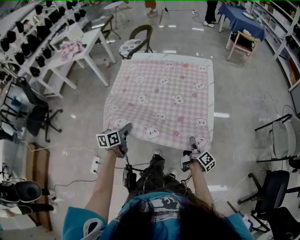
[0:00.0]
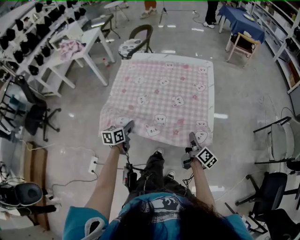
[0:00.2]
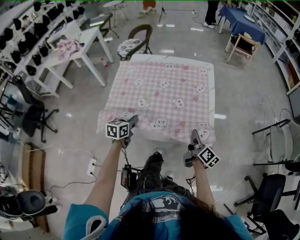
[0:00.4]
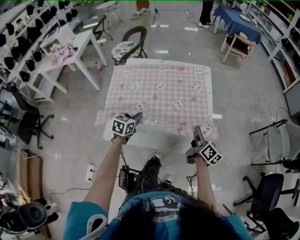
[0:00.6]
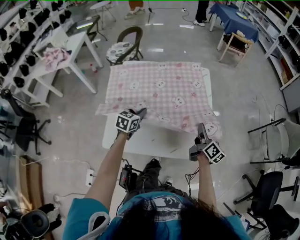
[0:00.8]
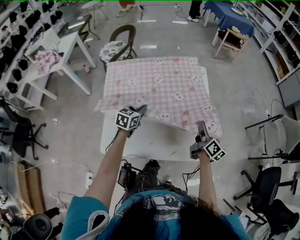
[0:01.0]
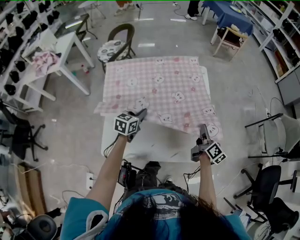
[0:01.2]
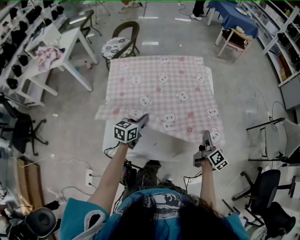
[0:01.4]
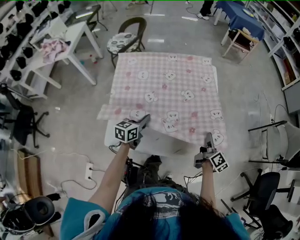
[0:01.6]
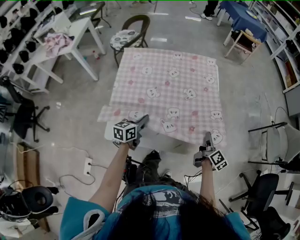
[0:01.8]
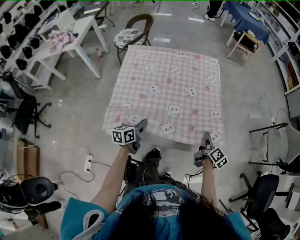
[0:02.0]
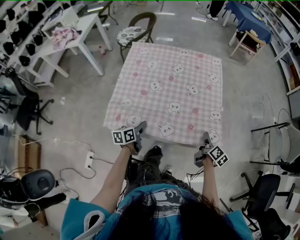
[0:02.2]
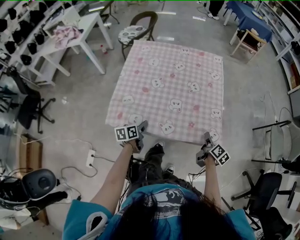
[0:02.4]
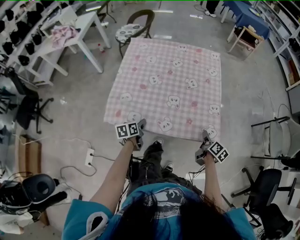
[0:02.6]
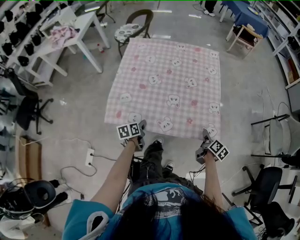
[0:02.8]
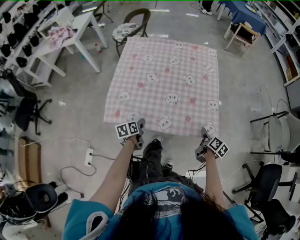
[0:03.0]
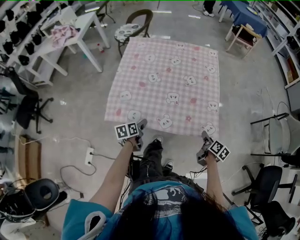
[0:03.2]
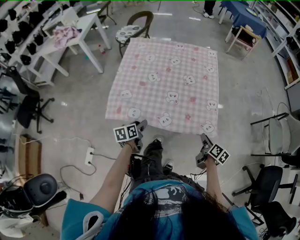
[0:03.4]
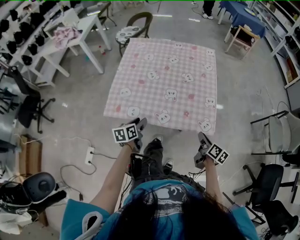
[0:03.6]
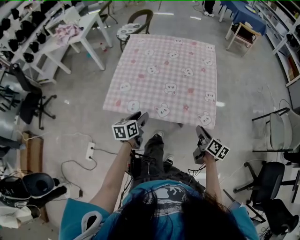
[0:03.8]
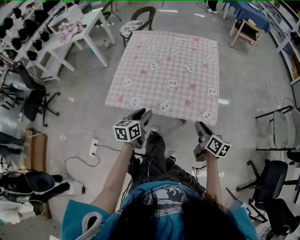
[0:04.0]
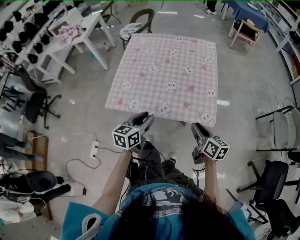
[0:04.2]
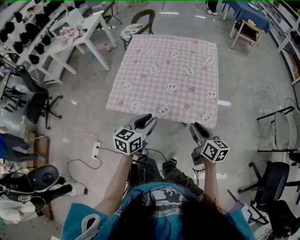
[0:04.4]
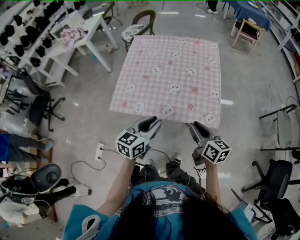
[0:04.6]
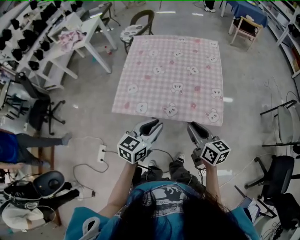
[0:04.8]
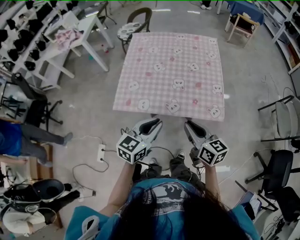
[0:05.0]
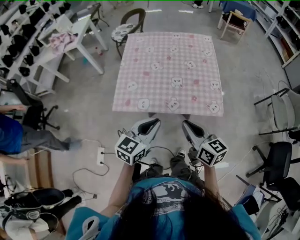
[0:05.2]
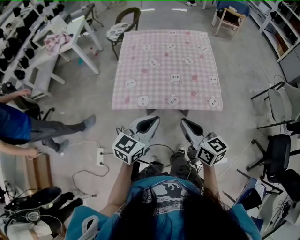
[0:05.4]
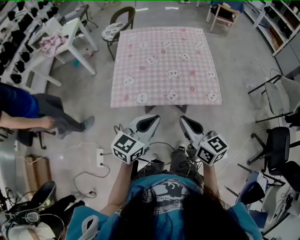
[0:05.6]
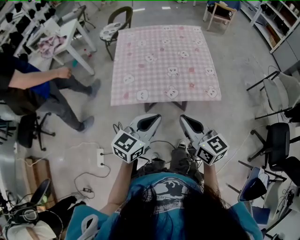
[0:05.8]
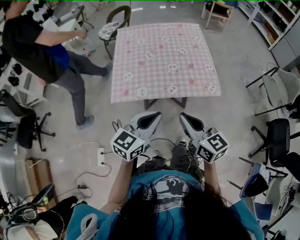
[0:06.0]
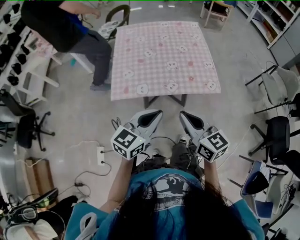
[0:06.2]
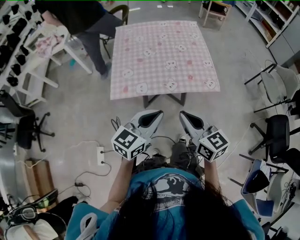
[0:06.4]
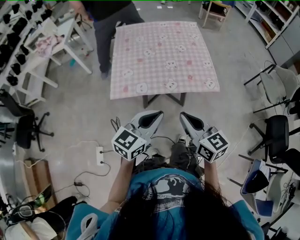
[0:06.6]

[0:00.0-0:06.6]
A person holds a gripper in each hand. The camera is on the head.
0.0 to 1.6 s: The right gripper heads forward and upward, covering some 15 cm, and changes its angle by about 20 degrees, while the left gripper heads forward, covering about 20 cm, and changes its angle by some 20 degrees.
1.6 to 3.2 s: The two grippers go some 15 cm backward and downward. The left gripper changes its angle by some 30 degrees, and opens up. Meanwhile the right gripper rotates approximately 30 degrees, and opens its fingers.
3.2 to 5.0 s: The left gripper goes some 25 cm upward and backward, rotates around the line of its fingers by approximately 40 degrees, clockwise from behind, and closes; the right gripper travels upward, to the left and backward by some 30 cm, and changes its angle by approximately 40 degrees.
5.0 to 6.6 s: The left gripper travels backward by about 10 cm, while the right gripper goes roughly 15 cm backward, to the left and upward.

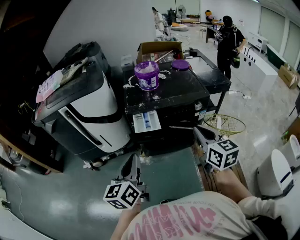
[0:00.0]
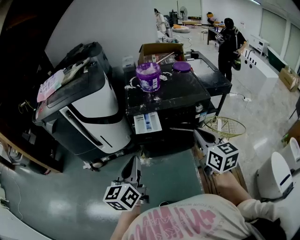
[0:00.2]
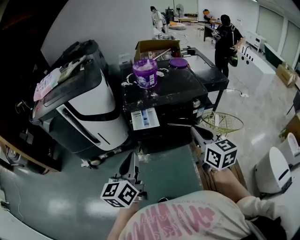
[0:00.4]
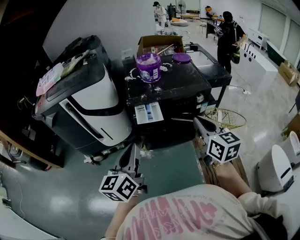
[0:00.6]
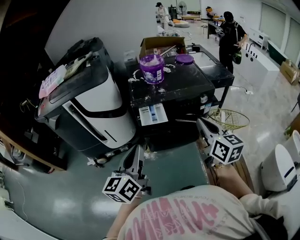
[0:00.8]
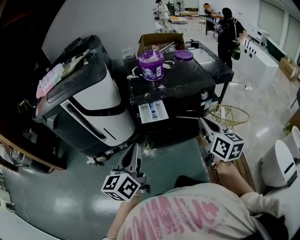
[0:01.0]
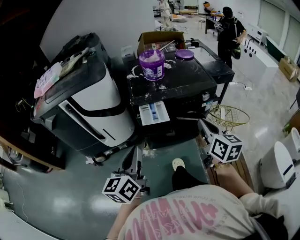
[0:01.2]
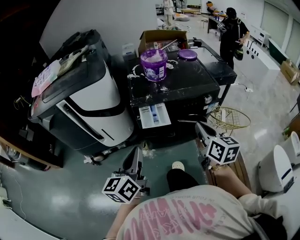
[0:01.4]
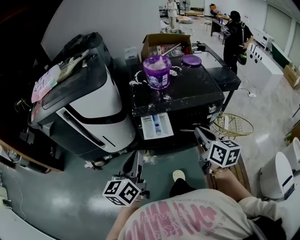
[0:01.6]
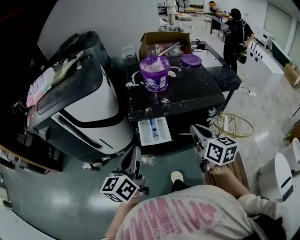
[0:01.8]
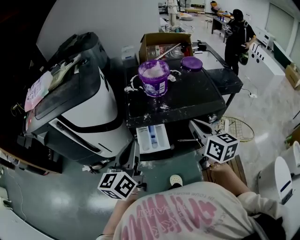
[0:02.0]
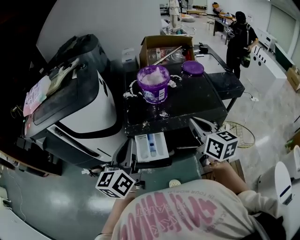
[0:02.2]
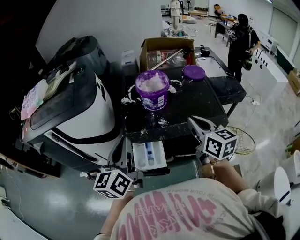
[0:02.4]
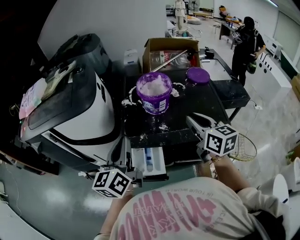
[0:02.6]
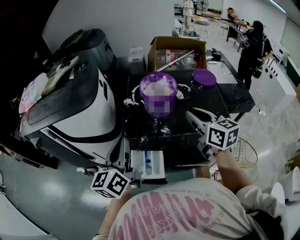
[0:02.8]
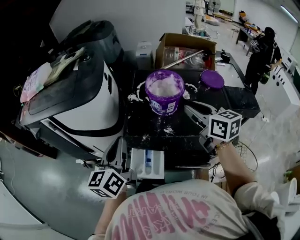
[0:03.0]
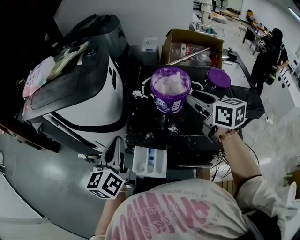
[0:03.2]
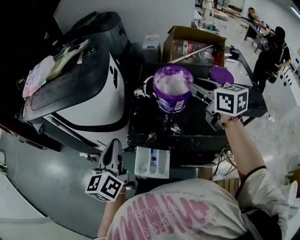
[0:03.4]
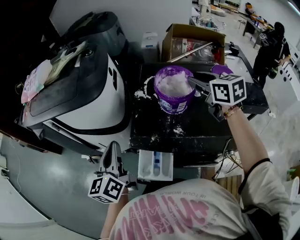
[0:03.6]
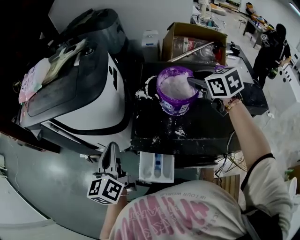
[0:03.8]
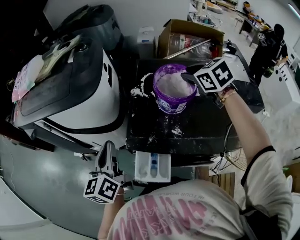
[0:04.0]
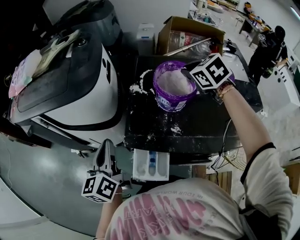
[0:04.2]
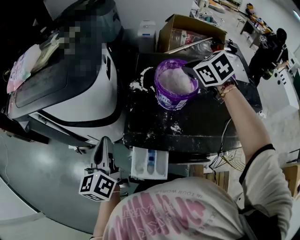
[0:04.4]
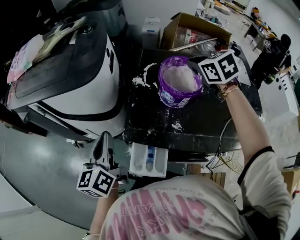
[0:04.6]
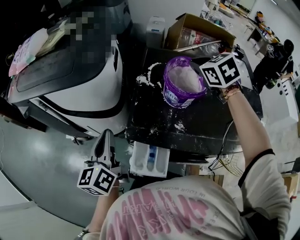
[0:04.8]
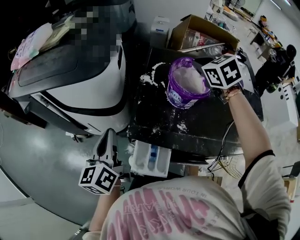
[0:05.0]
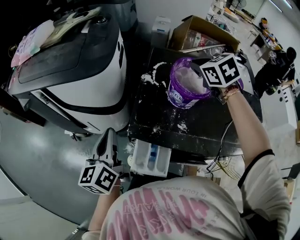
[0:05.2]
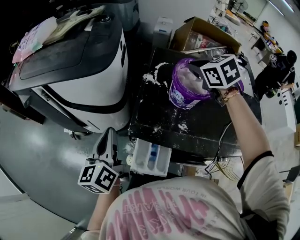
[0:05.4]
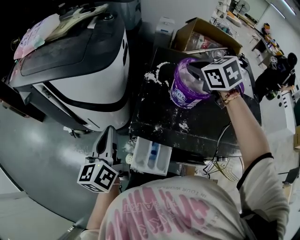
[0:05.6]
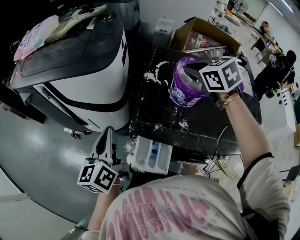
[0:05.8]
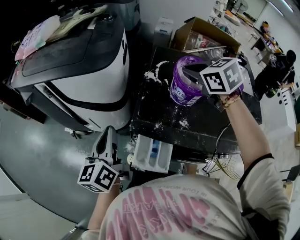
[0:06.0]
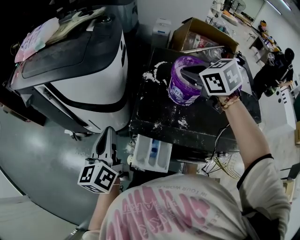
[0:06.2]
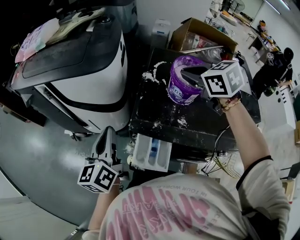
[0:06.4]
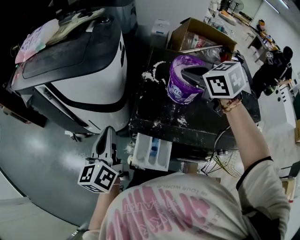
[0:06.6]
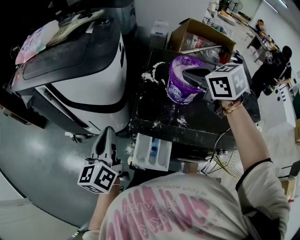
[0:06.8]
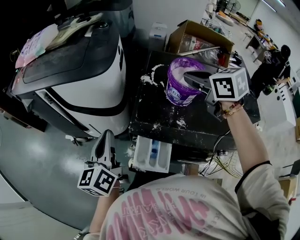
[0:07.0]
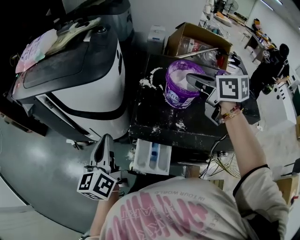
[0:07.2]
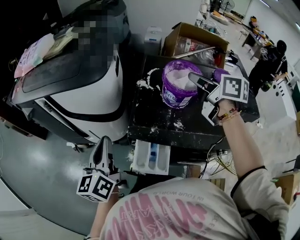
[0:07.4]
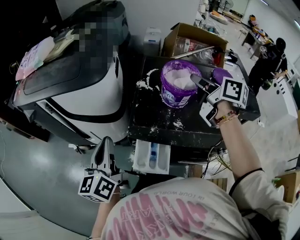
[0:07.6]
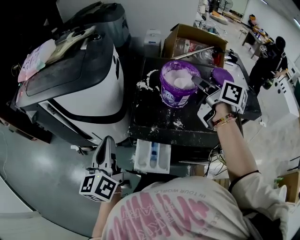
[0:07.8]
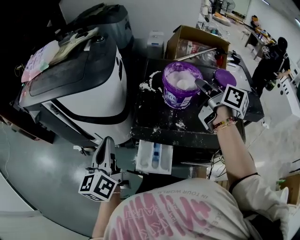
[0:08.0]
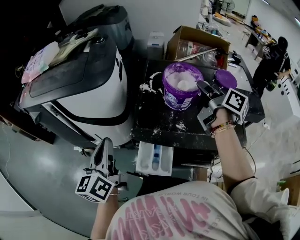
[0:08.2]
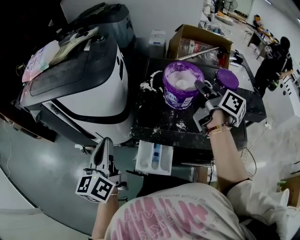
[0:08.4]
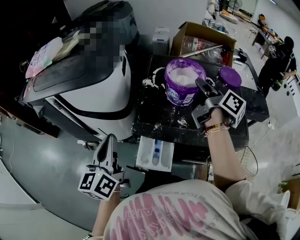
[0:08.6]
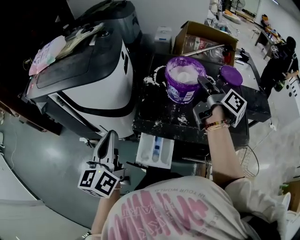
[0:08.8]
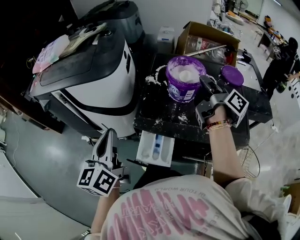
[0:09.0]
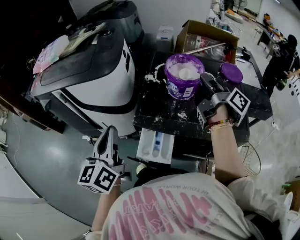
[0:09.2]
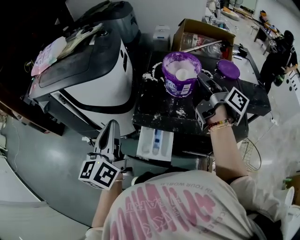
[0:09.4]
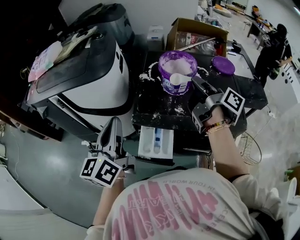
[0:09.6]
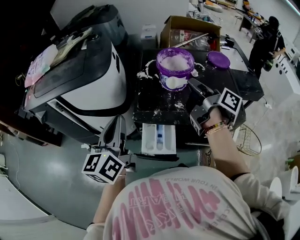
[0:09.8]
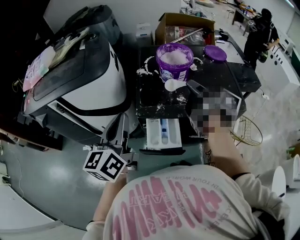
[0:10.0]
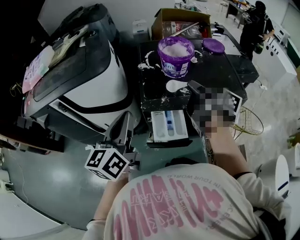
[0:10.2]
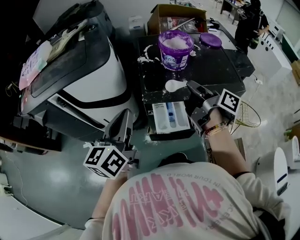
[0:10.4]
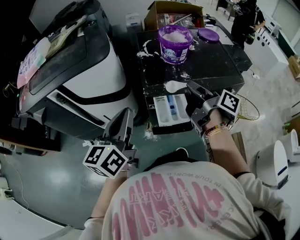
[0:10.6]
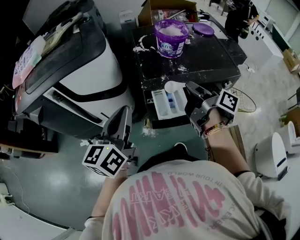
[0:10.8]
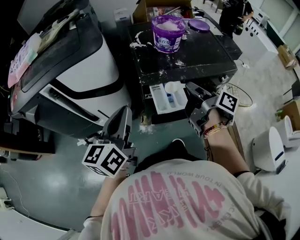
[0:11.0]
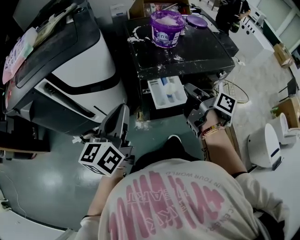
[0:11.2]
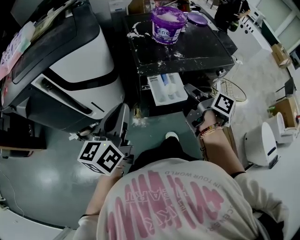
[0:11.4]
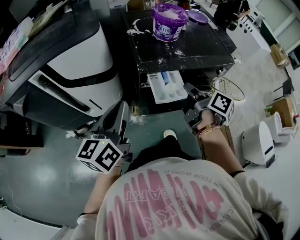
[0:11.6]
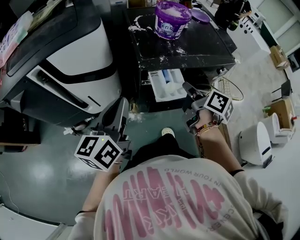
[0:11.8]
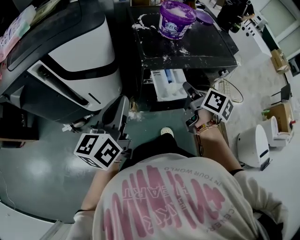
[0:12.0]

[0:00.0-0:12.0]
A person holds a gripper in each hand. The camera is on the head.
0.0 to 1.6 s: The left gripper goes some 10 cm forward, while the right gripper goes approximately 10 cm forward and downward.
1.6 to 3.0 s: The grippers both shift forward by approximately 30 cm. The right gripper swivels about 30 degrees, and opens.
3.0 to 4.4 s: The right gripper goes some 15 cm forward, tips its fingers downward by some 30 degrees, and closes its fingers, while the left gripper travels to the left by about 5 cm.
4.4 to 6.0 s: The right gripper is displaced to the left by some 10 cm.
6.0 to 7.6 s: The right gripper goes about 10 cm to the right and backward, and rolls clockwise, seen from behind, by about 50 degrees.
7.6 to 9.0 s: The left gripper changes place by roughly 5 cm, while the right gripper swivels about 40 degrees.
9.0 to 10.4 s: The right gripper goes some 20 cm backward and to the left. The left gripper changes its angle by roughly 30 degrees.
10.4 to 12.0 s: The left gripper shifts approximately 10 cm downward and to the left. Meanwhile the right gripper heads downward and backward, covering about 15 cm, and changes its angle by about 40 degrees.

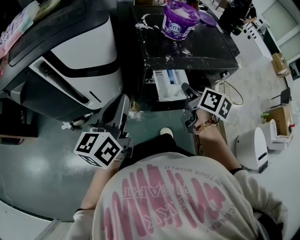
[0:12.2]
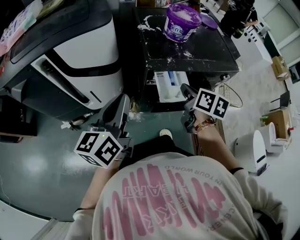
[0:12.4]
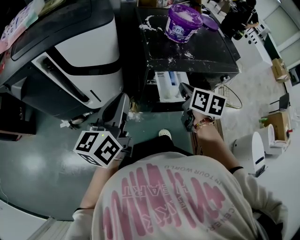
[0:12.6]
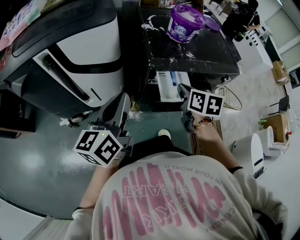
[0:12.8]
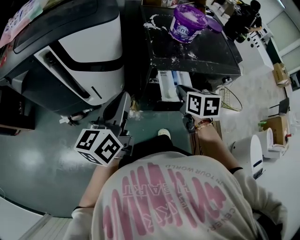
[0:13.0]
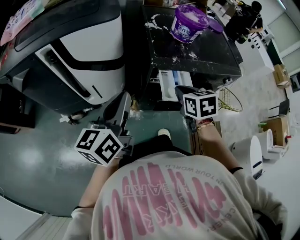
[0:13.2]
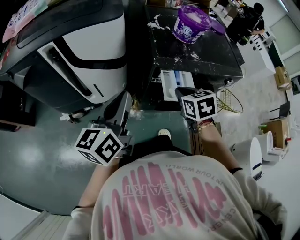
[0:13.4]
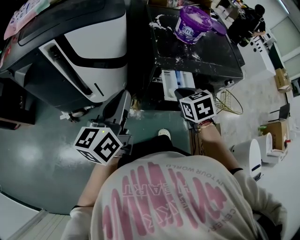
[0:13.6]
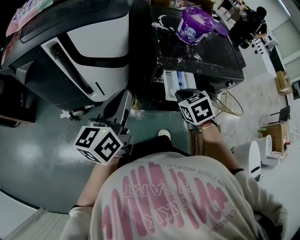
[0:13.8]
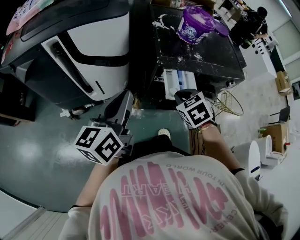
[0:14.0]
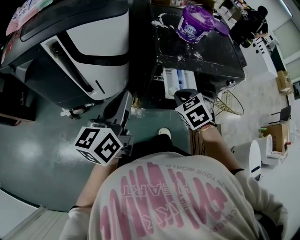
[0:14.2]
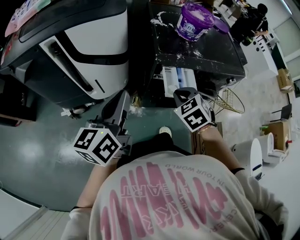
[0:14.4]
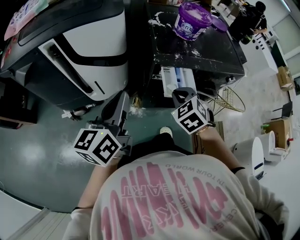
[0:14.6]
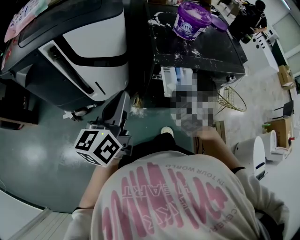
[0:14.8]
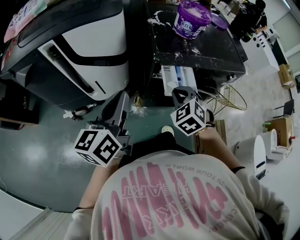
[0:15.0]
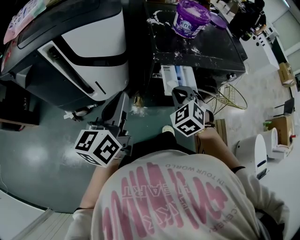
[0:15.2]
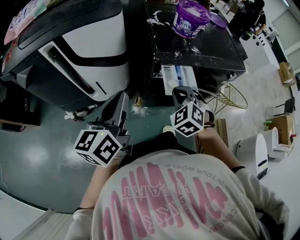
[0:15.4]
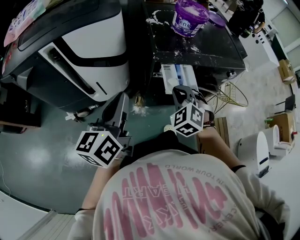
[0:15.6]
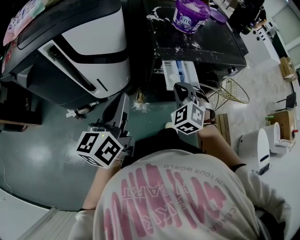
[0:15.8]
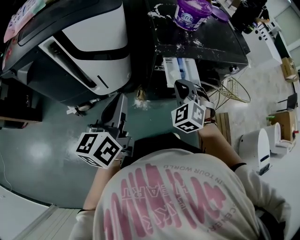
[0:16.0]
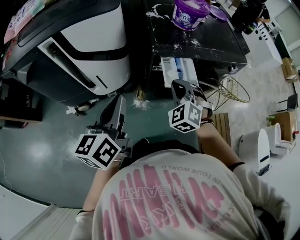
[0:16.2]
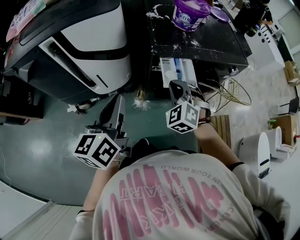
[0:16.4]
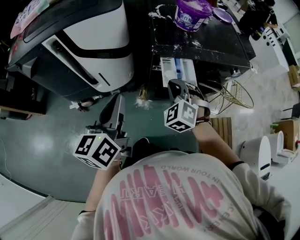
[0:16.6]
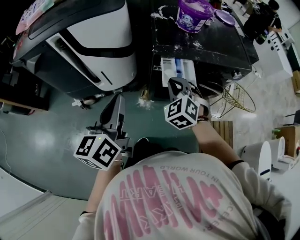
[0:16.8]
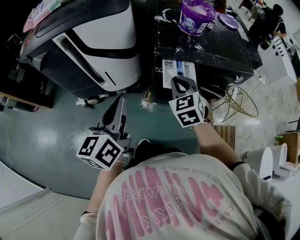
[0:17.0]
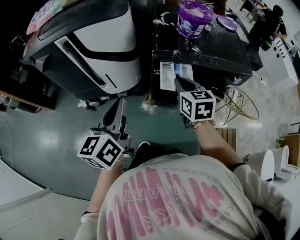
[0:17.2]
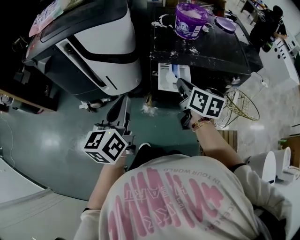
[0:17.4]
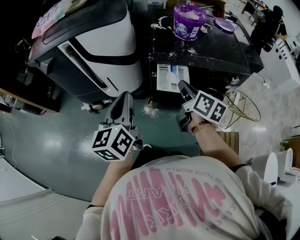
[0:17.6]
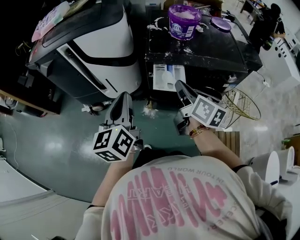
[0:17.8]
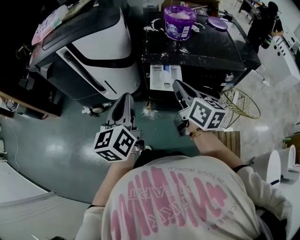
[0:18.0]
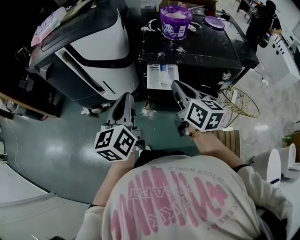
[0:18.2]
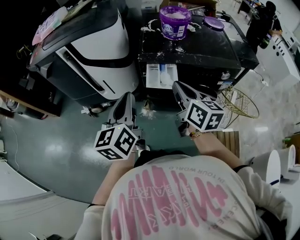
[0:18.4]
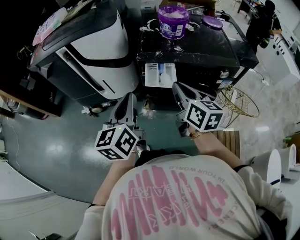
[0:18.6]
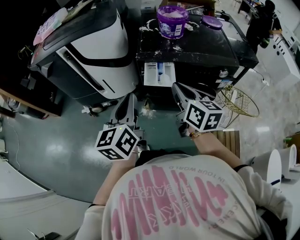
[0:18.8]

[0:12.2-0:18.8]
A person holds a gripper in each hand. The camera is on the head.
12.2 to 13.8 s: The right gripper goes approximately 5 cm to the left, and rolls counterclockwise, seen from behind, by roughly 60 degrees.
13.8 to 15.4 s: The right gripper changes its angle by approximately 30 degrees.
15.4 to 17.2 s: The right gripper goes roughly 5 cm upward, and rotates around the line of its fingers by about 50 degrees, clockwise from behind. The left gripper goes some 10 cm backward and to the right.
17.2 to 18.8 s: The right gripper goes approximately 15 cm backward, to the right and upward, and changes its angle by approximately 30 degrees, while the left gripper shifts some 10 cm to the right.
